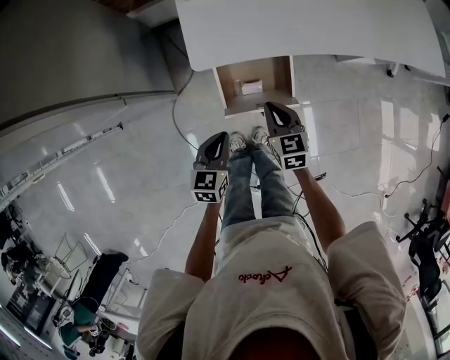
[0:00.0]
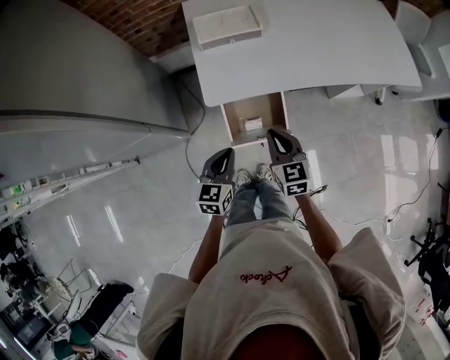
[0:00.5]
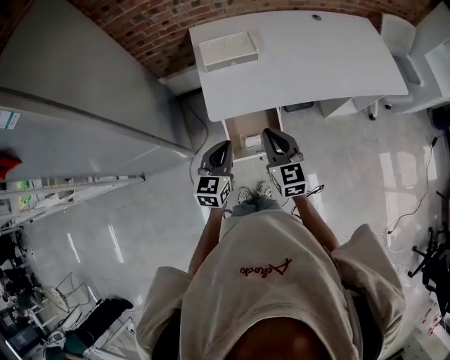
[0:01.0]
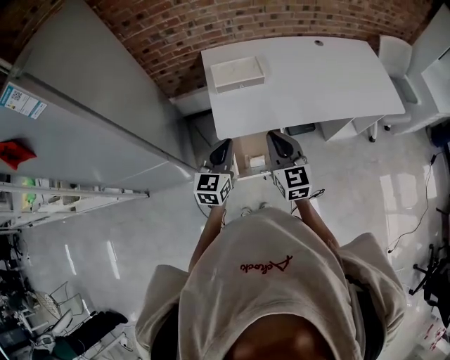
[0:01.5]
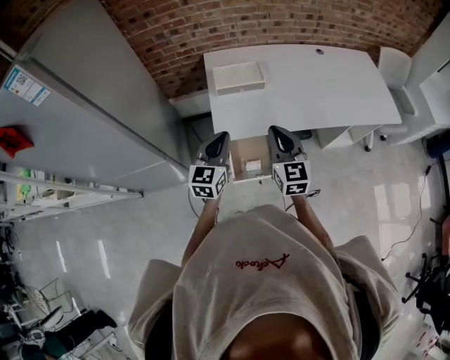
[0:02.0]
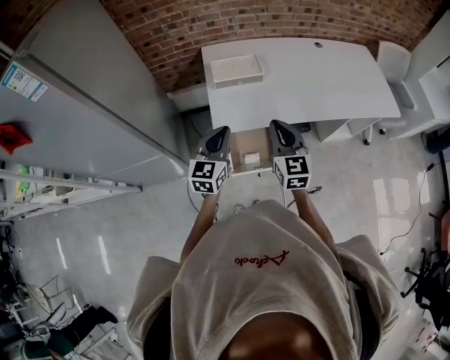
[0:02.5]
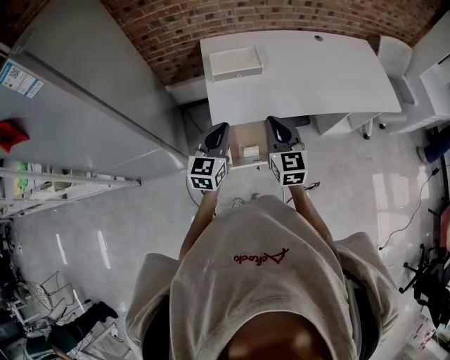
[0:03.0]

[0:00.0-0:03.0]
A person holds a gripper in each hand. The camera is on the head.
0:00.0 to 0:01.5: The right gripper goes some 30 cm upward, and turns by roughly 30 degrees, while the left gripper moves upward and forward, approximately 25 cm, and rotates approximately 30 degrees.
0:01.5 to 0:03.0: There are only small adjustments of the grippers.

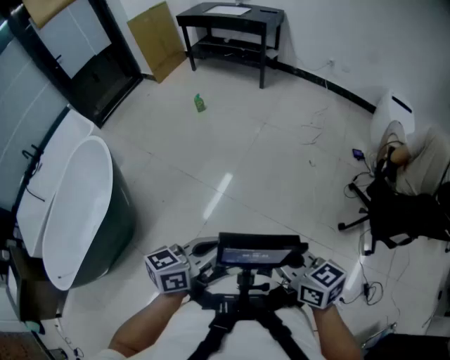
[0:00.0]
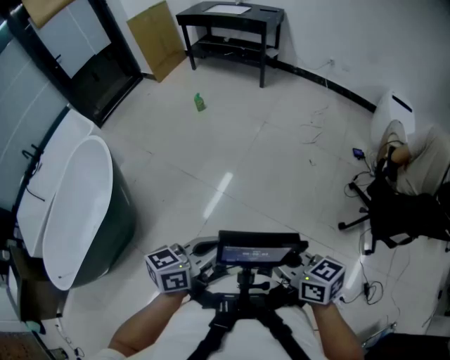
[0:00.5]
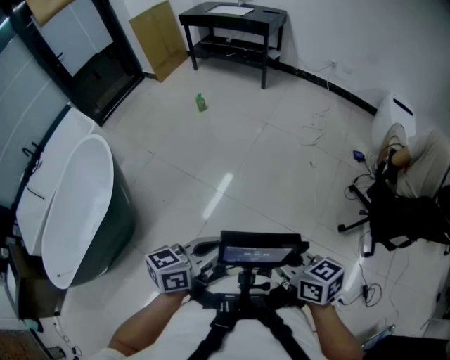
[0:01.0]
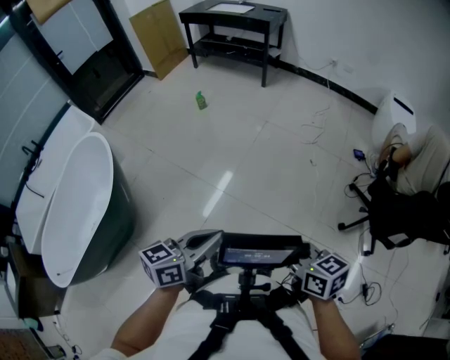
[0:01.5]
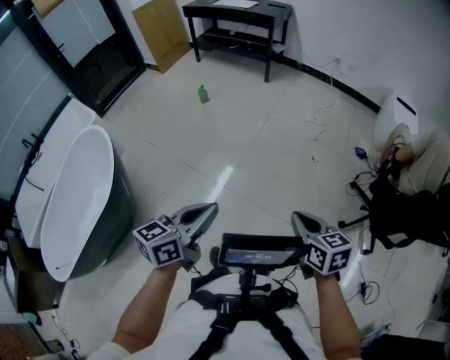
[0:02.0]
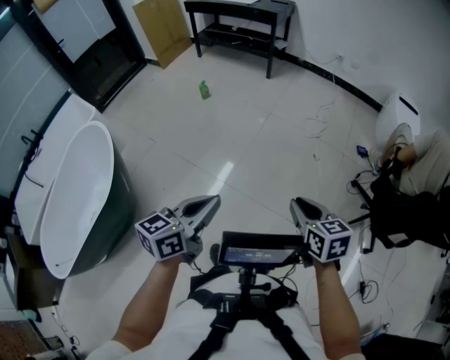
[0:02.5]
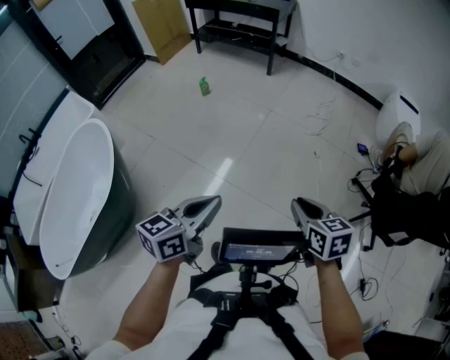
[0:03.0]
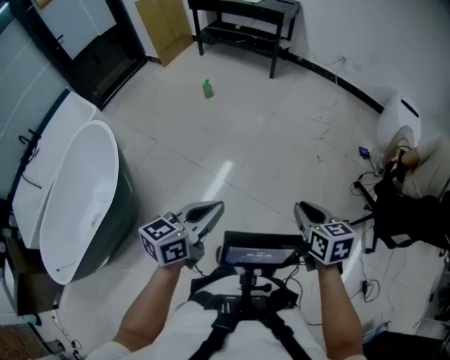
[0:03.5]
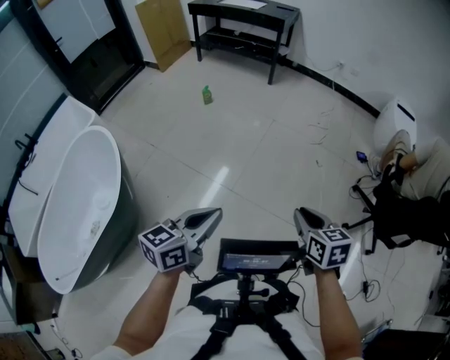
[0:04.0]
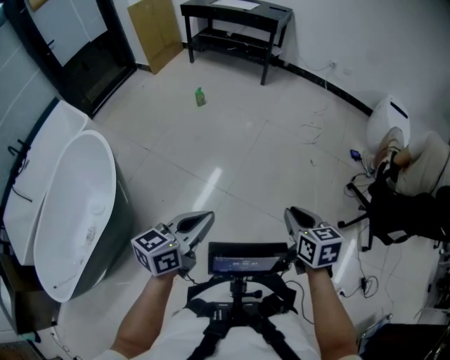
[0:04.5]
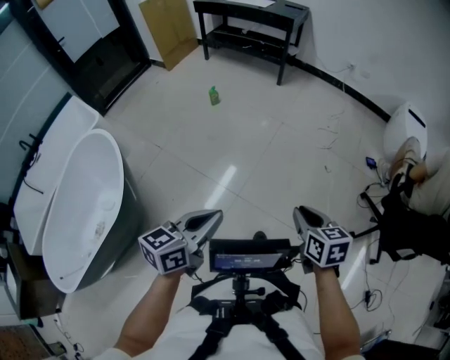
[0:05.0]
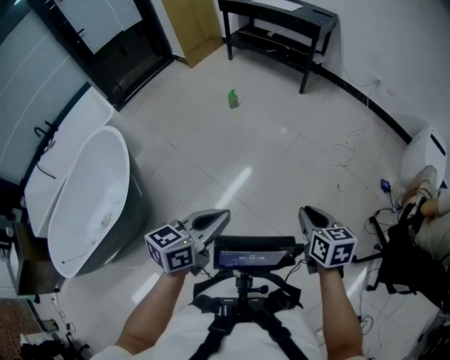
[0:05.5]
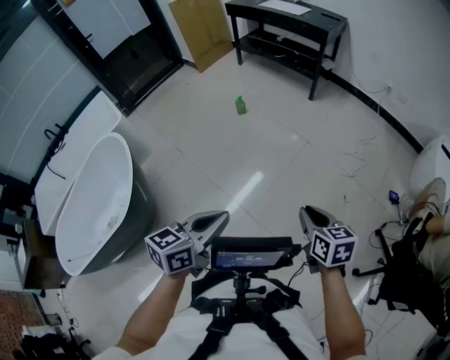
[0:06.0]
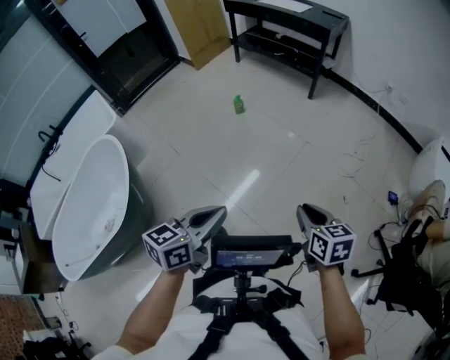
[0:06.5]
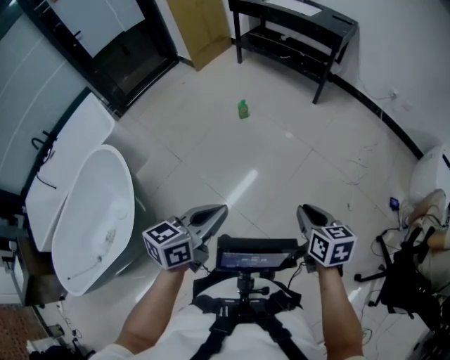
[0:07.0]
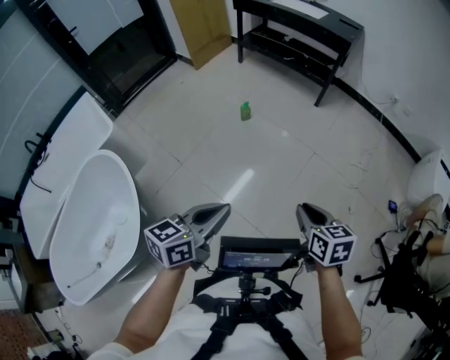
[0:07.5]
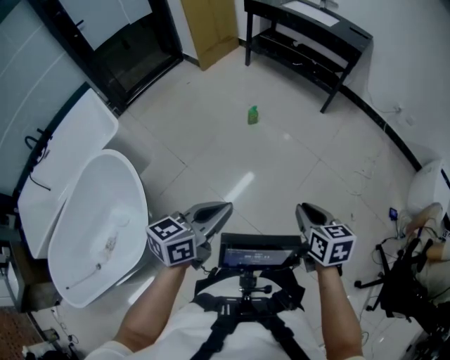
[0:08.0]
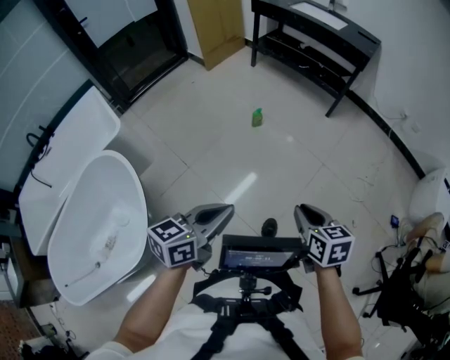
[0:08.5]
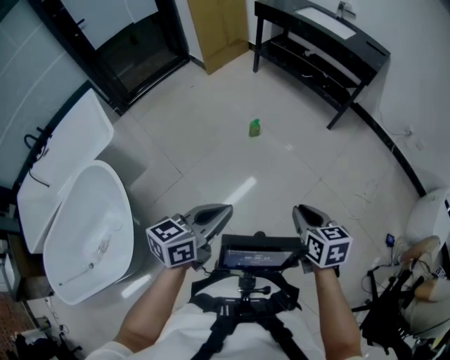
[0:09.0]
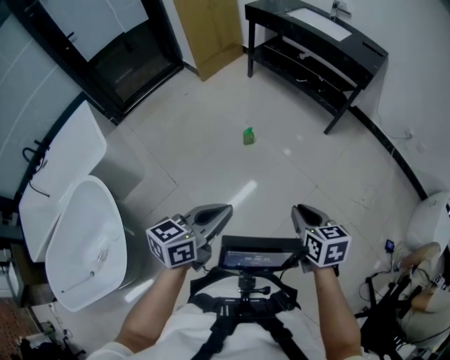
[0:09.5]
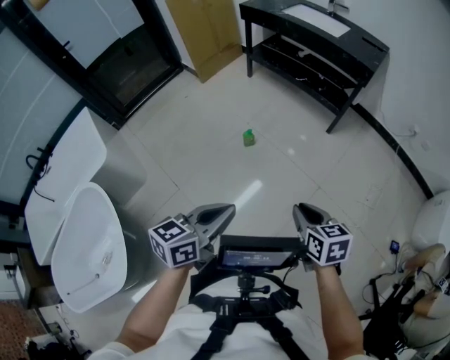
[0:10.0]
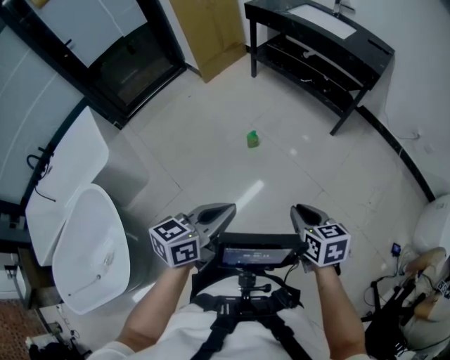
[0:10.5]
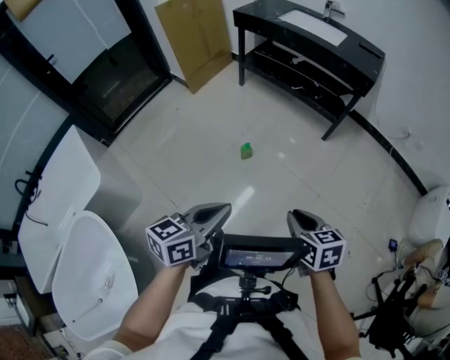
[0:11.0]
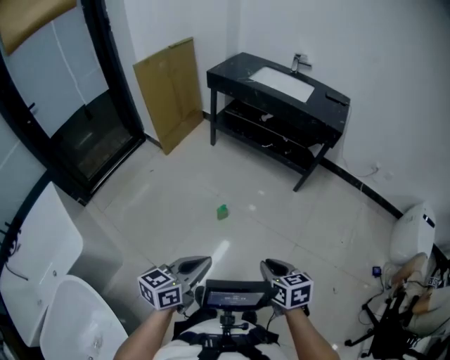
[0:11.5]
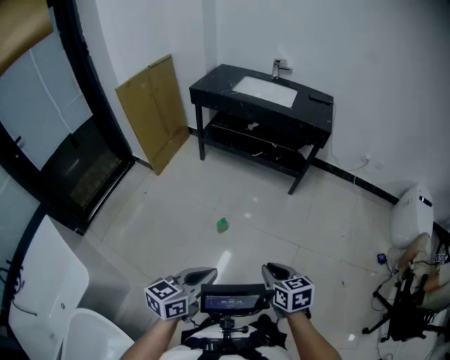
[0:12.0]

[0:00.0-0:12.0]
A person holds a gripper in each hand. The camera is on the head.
0:00.0 to 0:02.0: The left gripper goes some 10 cm forward and to the left; the right gripper shifts about 10 cm forward and to the right, and changes its angle by about 20 degrees.
0:02.0 to 0:04.0: Both grippers travel together to the left, approximately 10 cm.
0:04.0 to 0:06.0: The two grippers go approximately 20 cm forward.
0:06.0 to 0:08.0: Both grippers move to the left and forward, roughly 30 cm.
0:08.0 to 0:10.0: The grippers both shift forward by about 25 cm.
0:10.0 to 0:12.0: Both grippers move to the left and forward, about 20 cm.

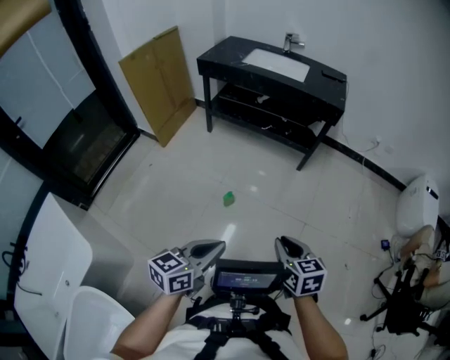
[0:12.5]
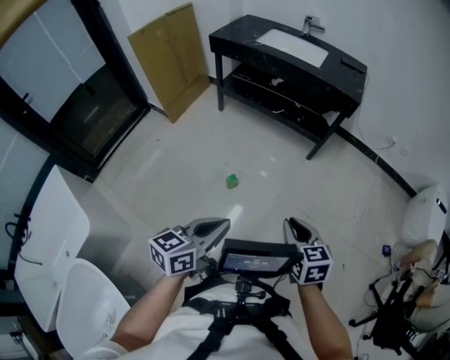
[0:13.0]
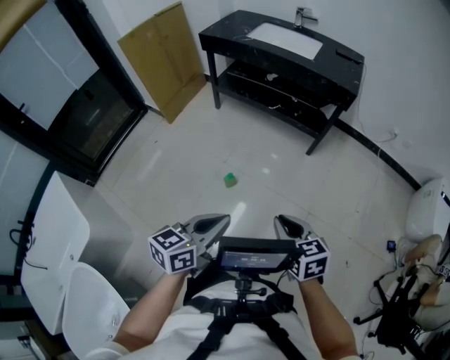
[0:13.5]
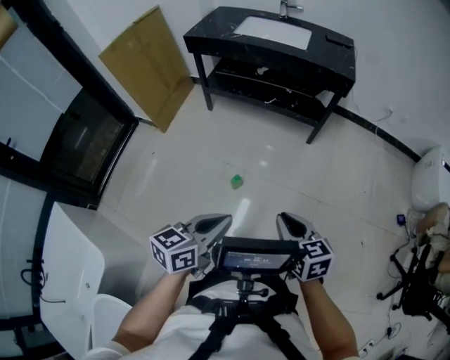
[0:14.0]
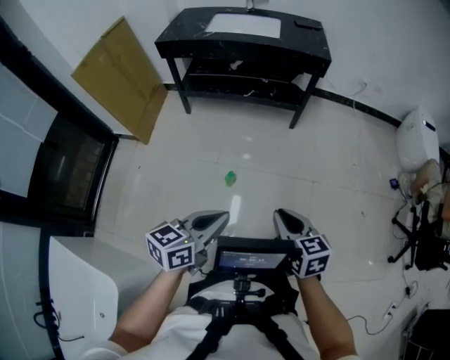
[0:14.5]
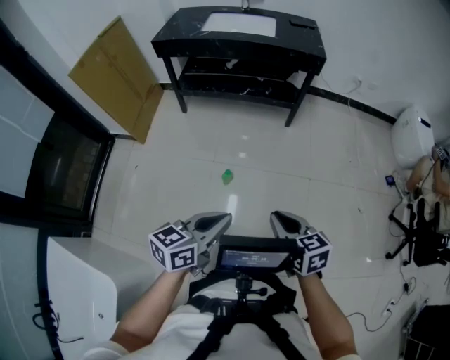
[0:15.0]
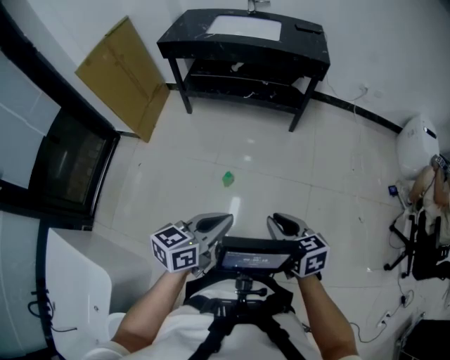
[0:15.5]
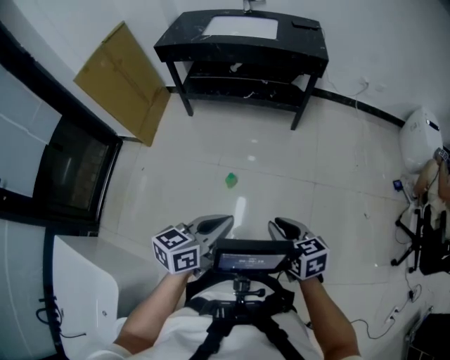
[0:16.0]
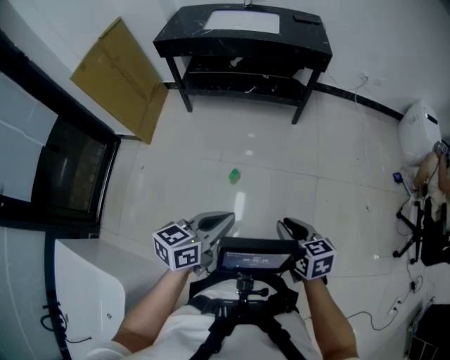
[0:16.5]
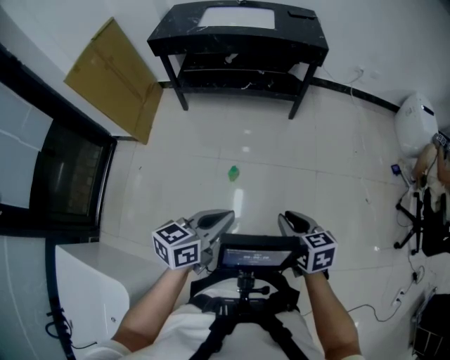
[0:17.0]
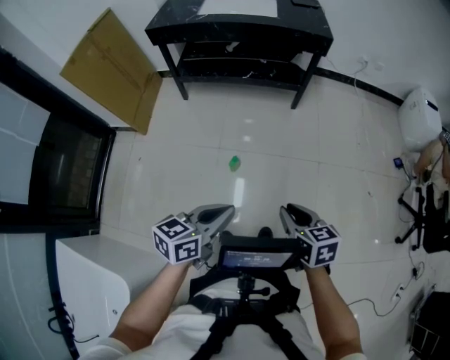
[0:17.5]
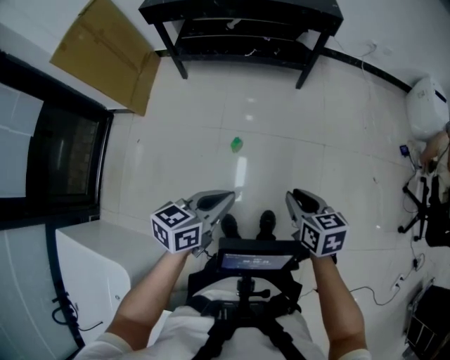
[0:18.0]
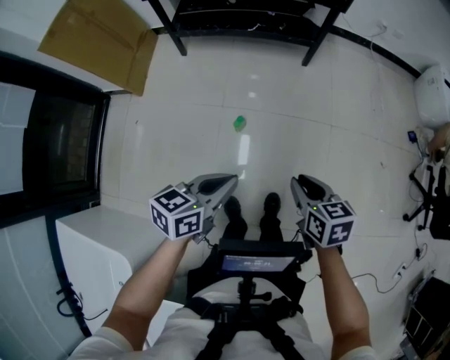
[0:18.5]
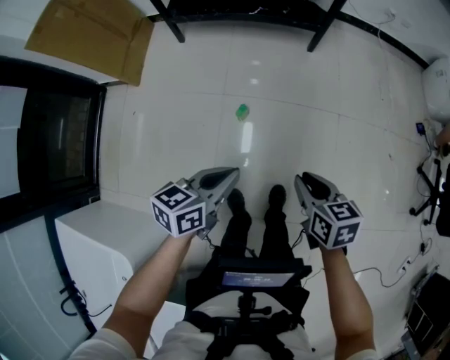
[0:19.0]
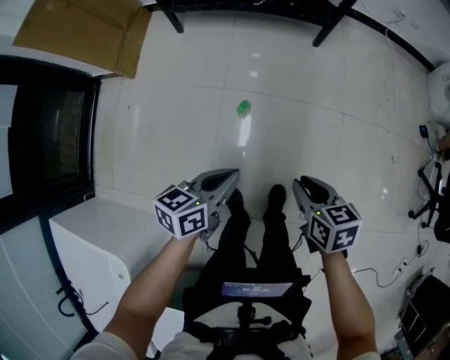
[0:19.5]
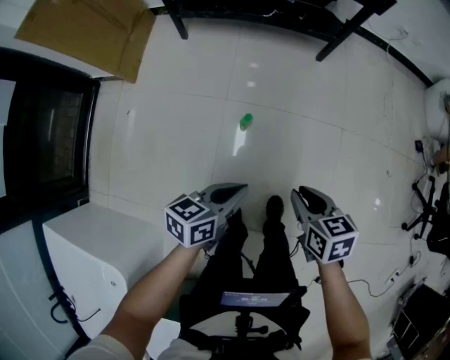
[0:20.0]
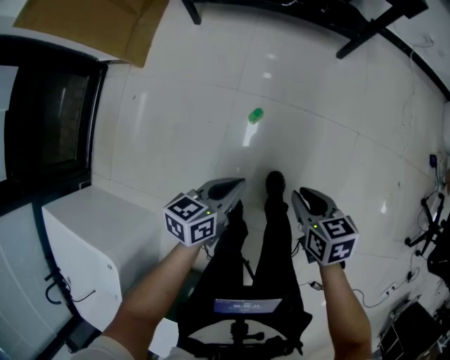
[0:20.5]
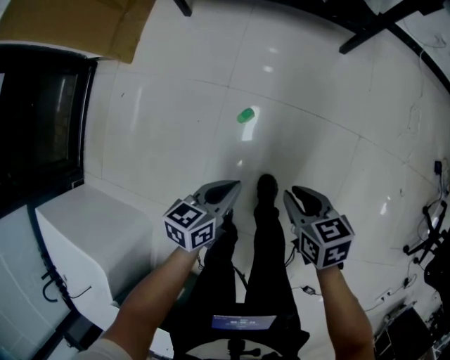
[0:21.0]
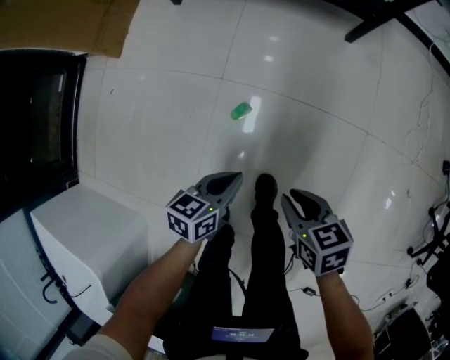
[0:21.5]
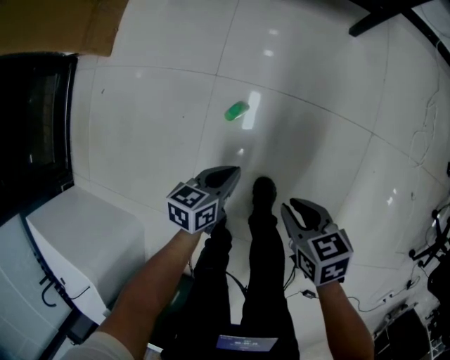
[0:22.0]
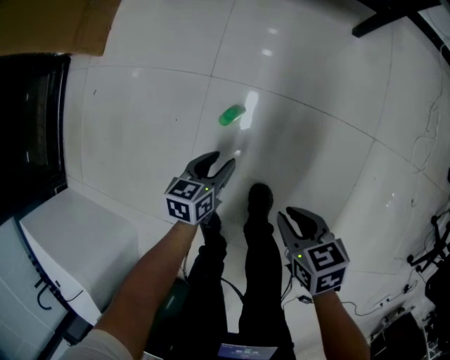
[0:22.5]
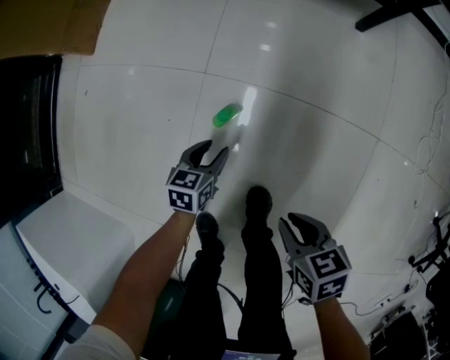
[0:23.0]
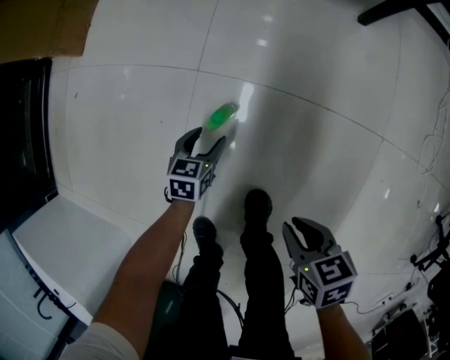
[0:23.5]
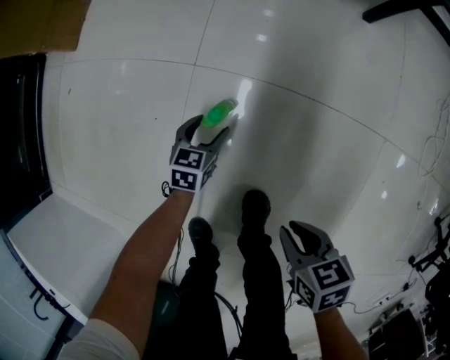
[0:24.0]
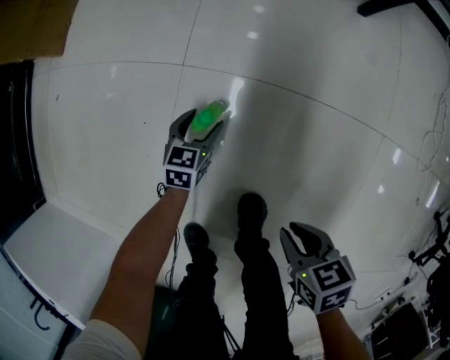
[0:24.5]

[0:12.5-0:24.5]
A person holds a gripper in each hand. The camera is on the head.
0:12.5 to 0:14.5: The left gripper moves forward and to the left, some 10 cm, while the right gripper travels to the left by roughly 10 cm.
0:14.5 to 0:16.5: There are only small adjustments of the grippers.
0:16.5 to 0:18.5: The two grippers go about 5 cm downward.
0:18.5 to 0:20.5: Both grippers move downward, about 15 cm.
0:20.5 to 0:22.5: The left gripper goes approximately 30 cm downward, and opens its fingers; the right gripper travels downward by approximately 20 cm.
0:22.5 to 0:24.5: The left gripper is displaced downward and forward by approximately 20 cm. The right gripper moves downward, some 10 cm.
